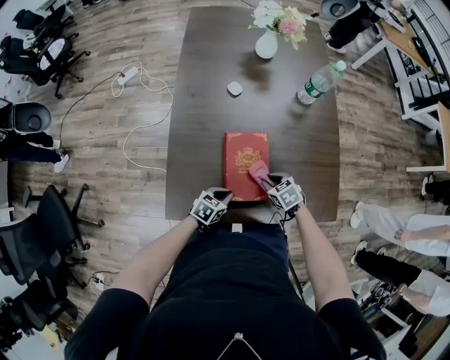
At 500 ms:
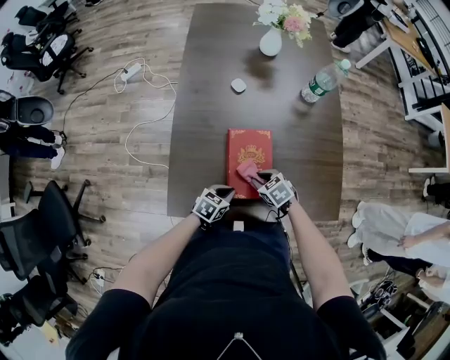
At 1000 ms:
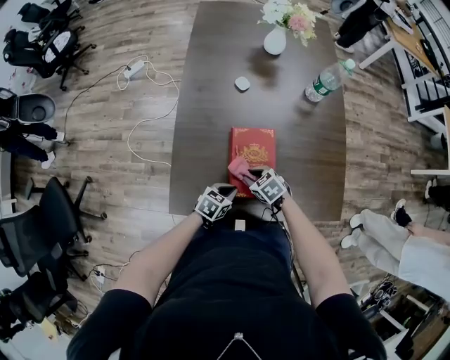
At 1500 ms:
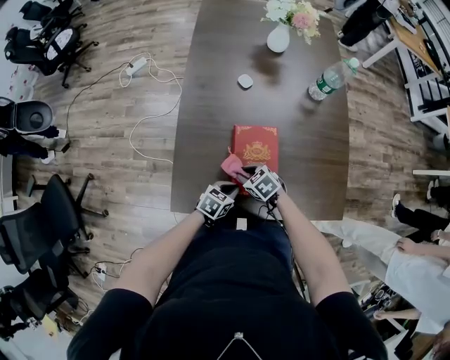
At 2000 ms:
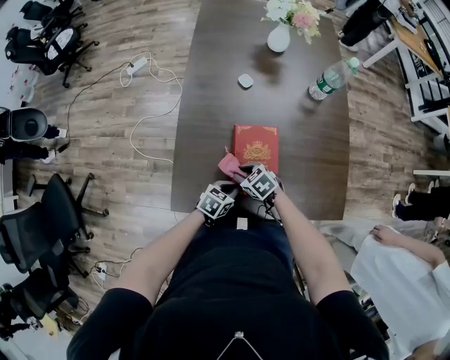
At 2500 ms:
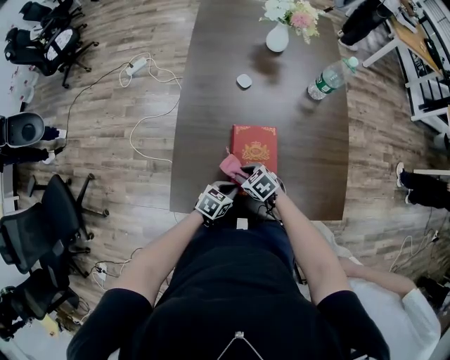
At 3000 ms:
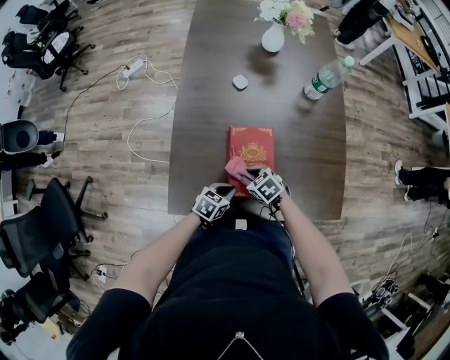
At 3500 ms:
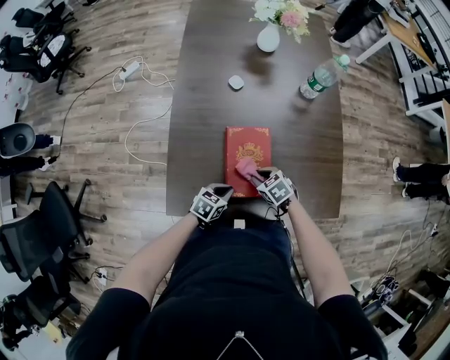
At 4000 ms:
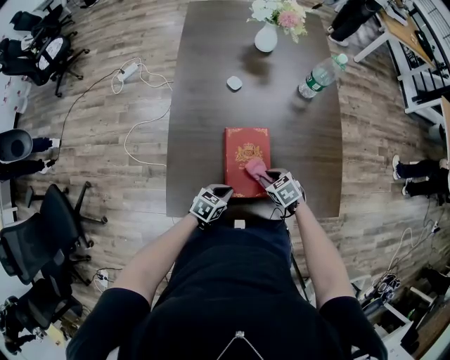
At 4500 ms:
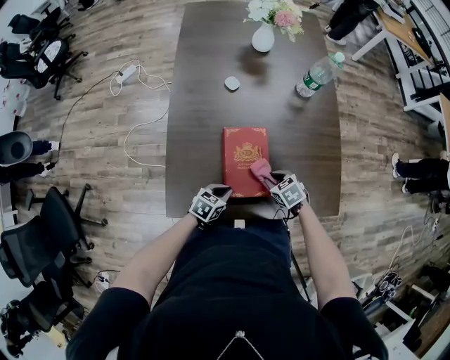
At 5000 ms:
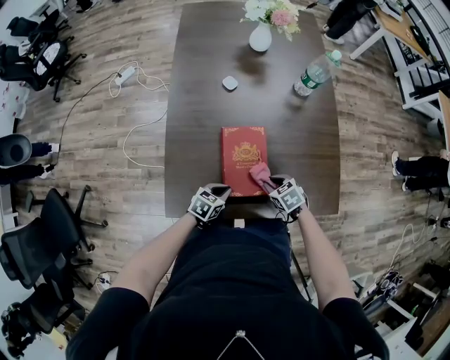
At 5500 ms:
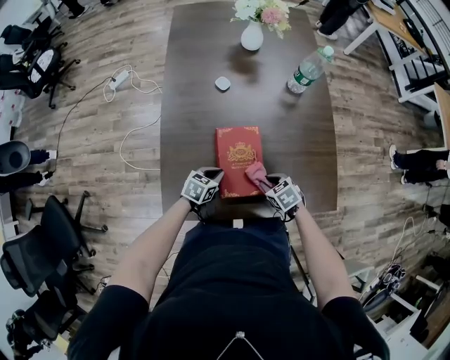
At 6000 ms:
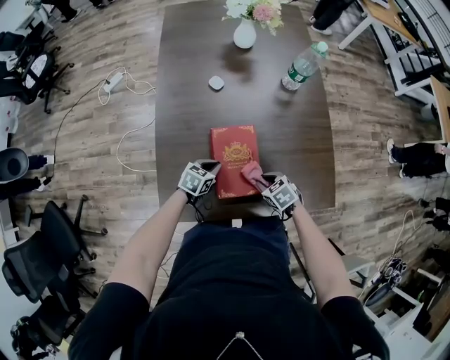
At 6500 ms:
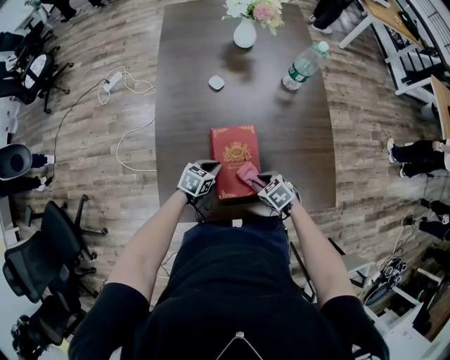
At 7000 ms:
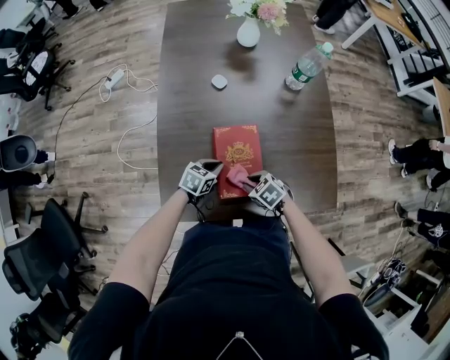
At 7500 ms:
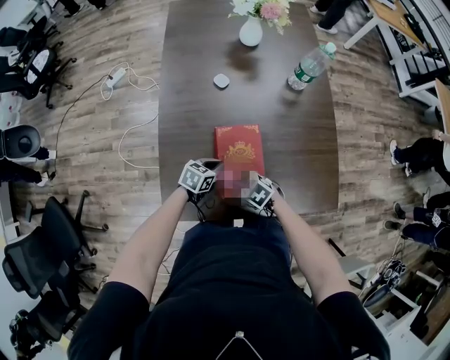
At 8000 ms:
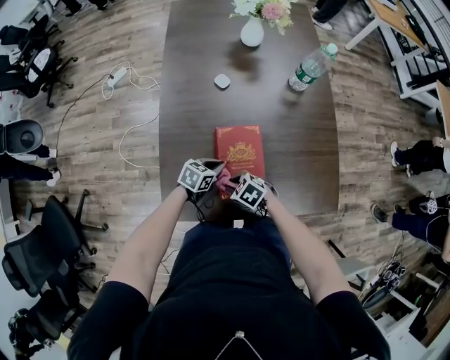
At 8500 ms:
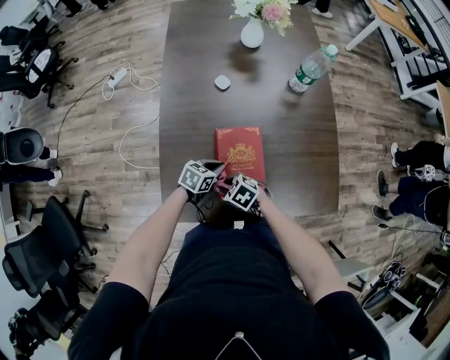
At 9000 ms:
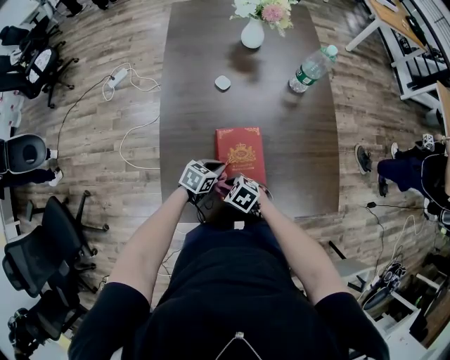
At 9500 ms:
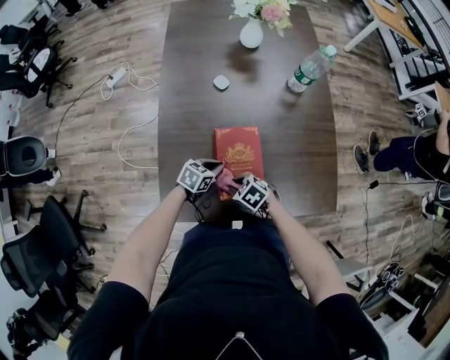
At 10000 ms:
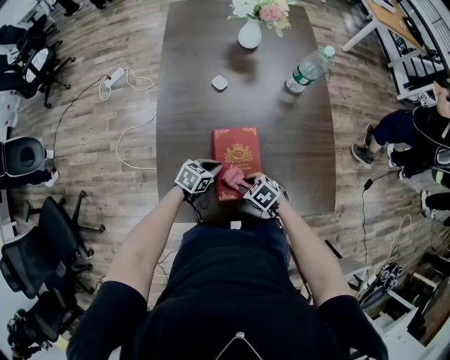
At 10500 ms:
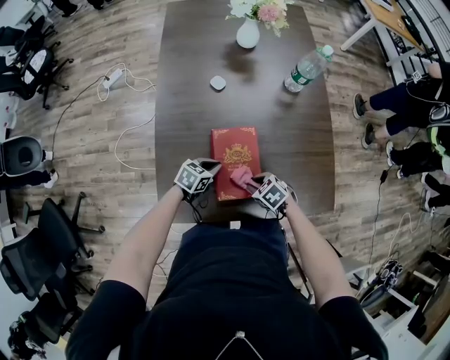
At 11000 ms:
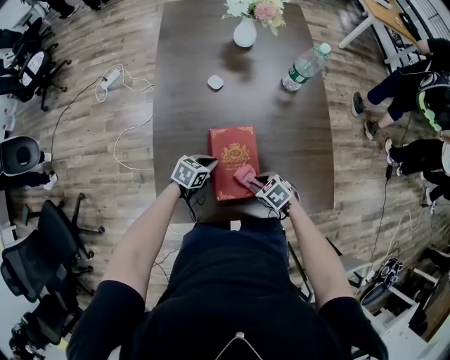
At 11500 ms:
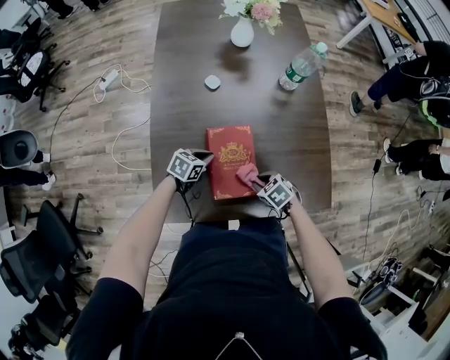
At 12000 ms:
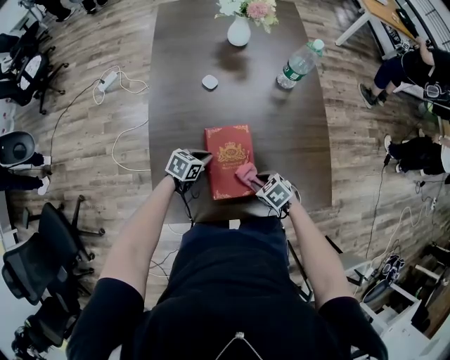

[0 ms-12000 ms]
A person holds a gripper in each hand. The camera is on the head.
0 ms to 2000 ms: The right gripper ends up approximately 15 cm from where it was.
2000 ms to 4000 ms: The right gripper ends up approximately 15 cm from where it was.
4000 ms to 6000 ms: The left gripper heads forward, covering some 10 cm.
6000 ms to 8000 ms: The right gripper changes place by roughly 15 cm.
8000 ms to 10000 ms: The right gripper ends up some 5 cm from where it was.
10000 ms to 12000 ms: The right gripper changes place by some 5 cm.

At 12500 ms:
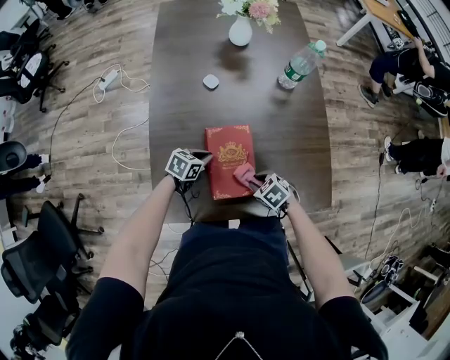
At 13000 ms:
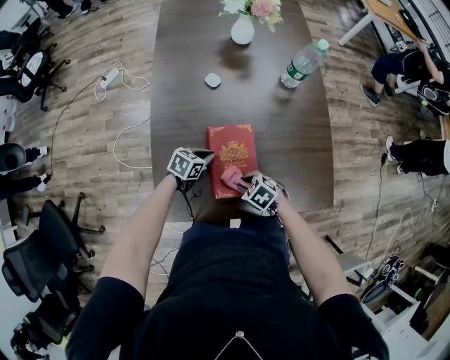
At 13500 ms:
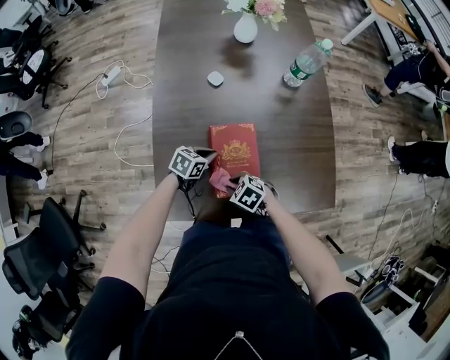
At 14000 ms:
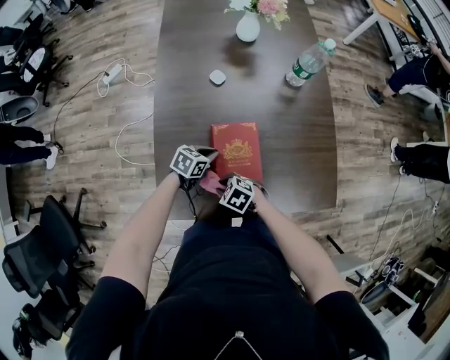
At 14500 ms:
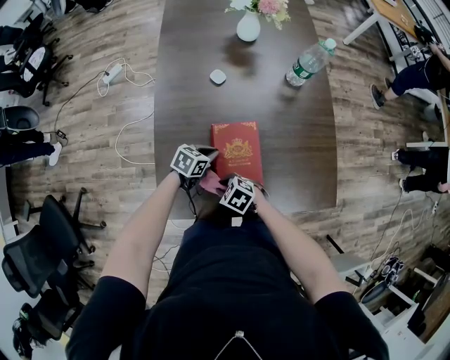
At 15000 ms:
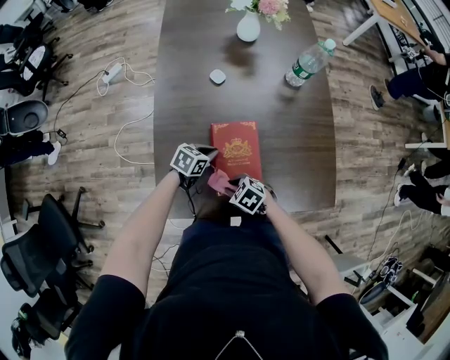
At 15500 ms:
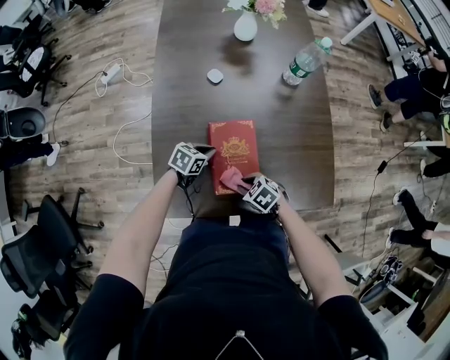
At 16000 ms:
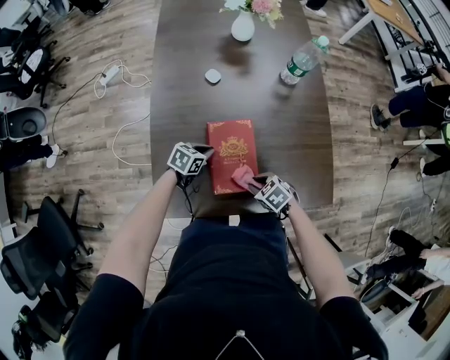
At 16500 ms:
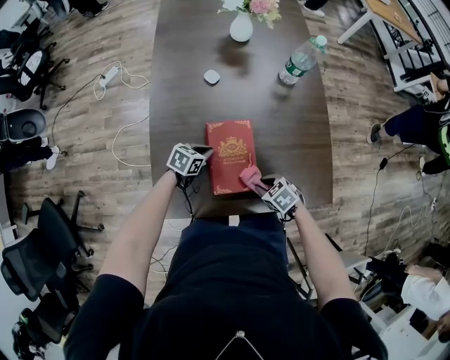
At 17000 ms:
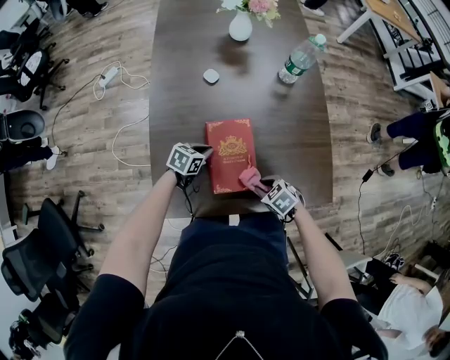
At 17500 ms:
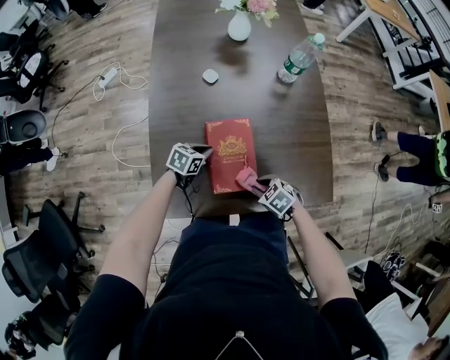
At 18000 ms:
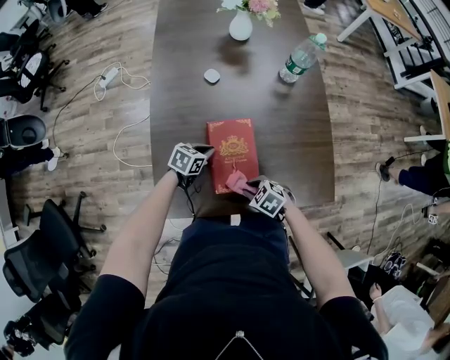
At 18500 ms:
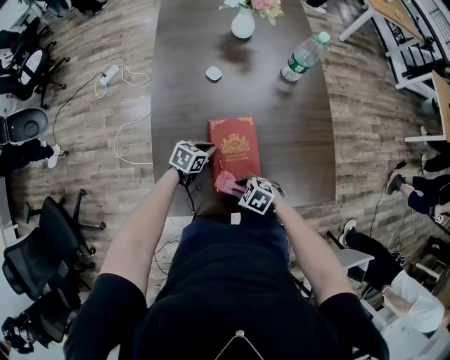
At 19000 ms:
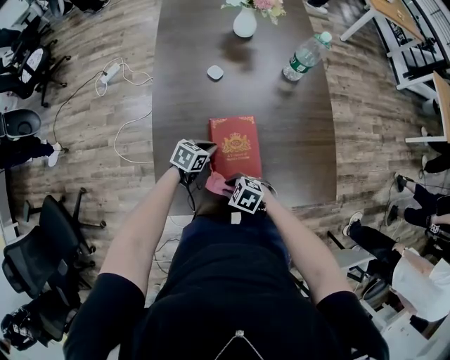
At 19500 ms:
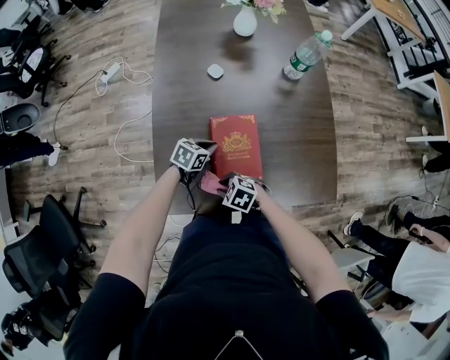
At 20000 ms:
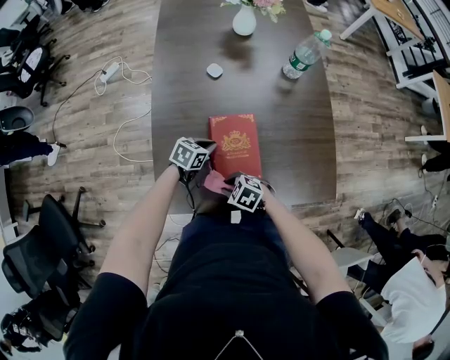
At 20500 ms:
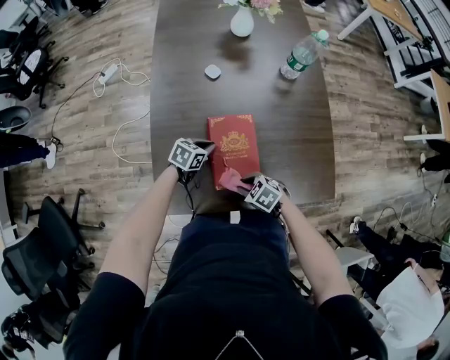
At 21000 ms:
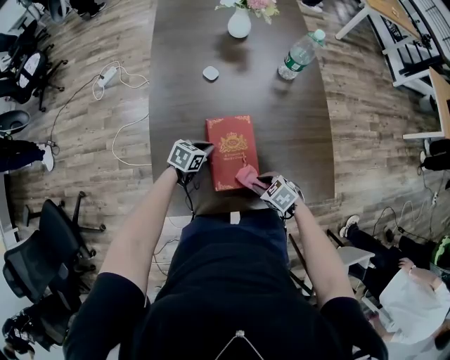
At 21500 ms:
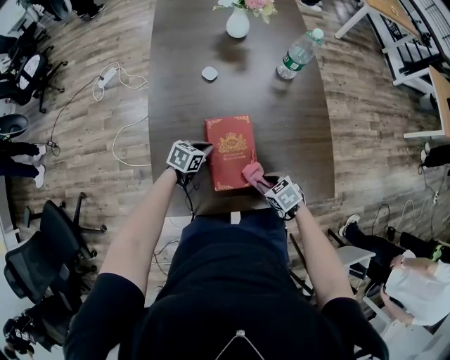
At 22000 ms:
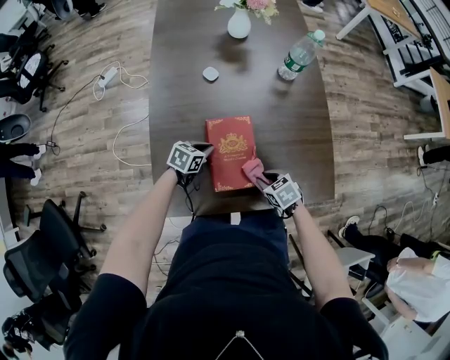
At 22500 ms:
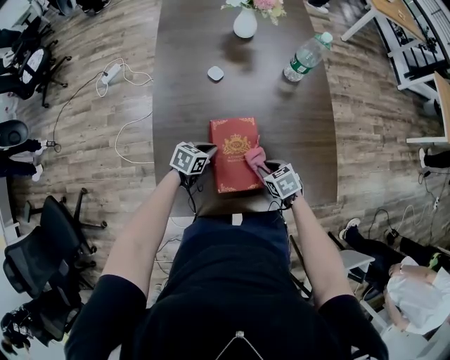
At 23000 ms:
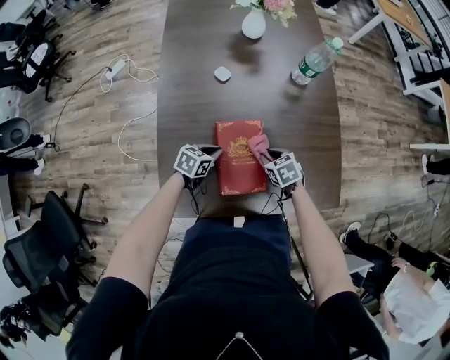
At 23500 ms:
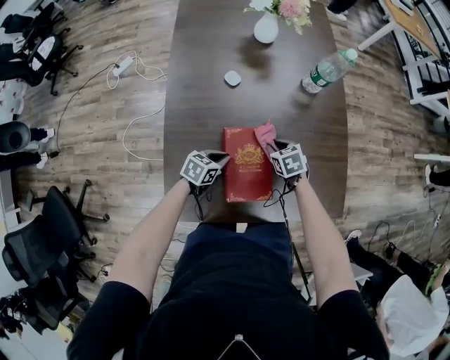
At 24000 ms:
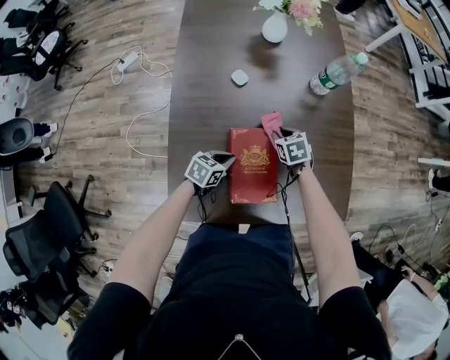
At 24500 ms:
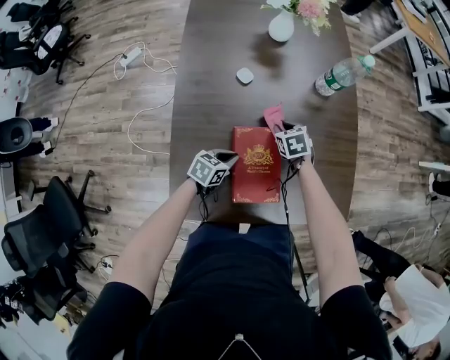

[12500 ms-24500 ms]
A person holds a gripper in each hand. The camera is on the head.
12500 ms to 14500 ms: The right gripper shifts by approximately 15 cm.
14500 ms to 16500 ms: The right gripper shifts by some 15 cm.
16500 ms to 18500 ms: The right gripper moves some 10 cm.
20500 ms to 22500 ms: The right gripper ends up some 10 cm from where it was, and changes its angle by approximately 30 degrees.
22500 ms to 24500 ms: The right gripper goes about 20 cm forward.

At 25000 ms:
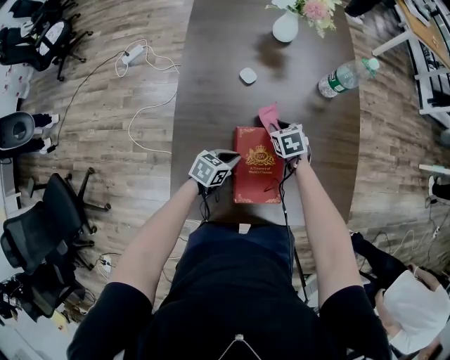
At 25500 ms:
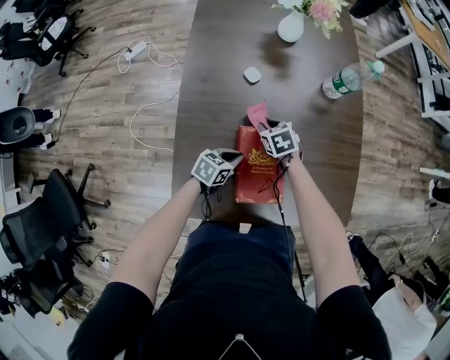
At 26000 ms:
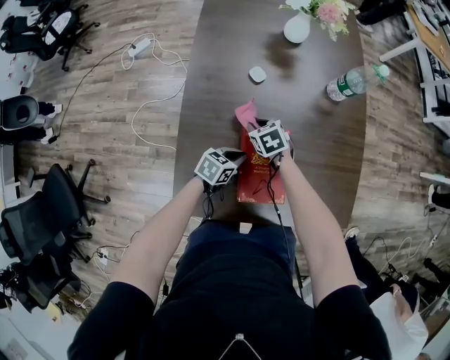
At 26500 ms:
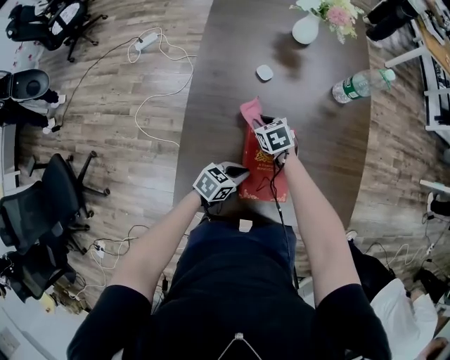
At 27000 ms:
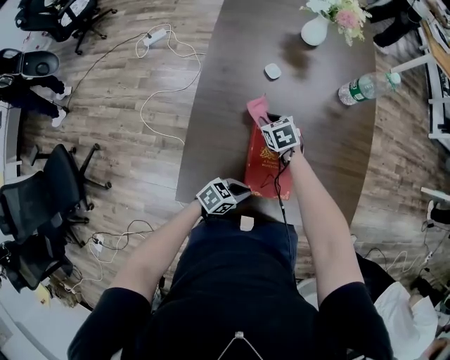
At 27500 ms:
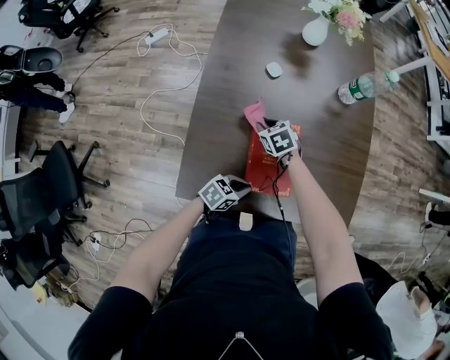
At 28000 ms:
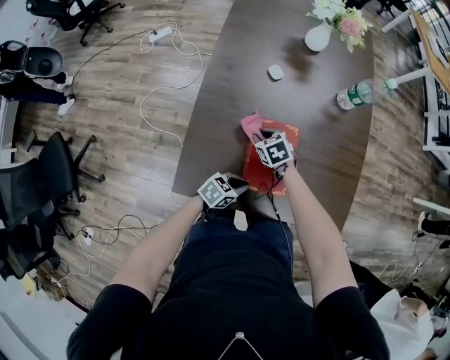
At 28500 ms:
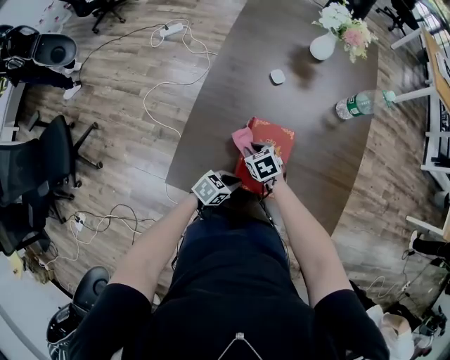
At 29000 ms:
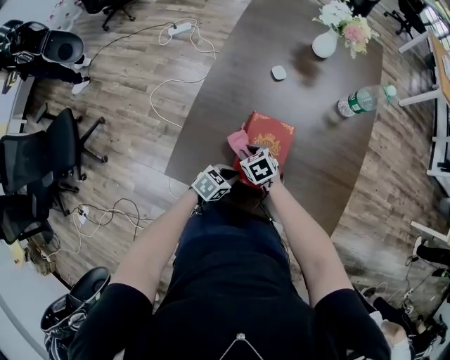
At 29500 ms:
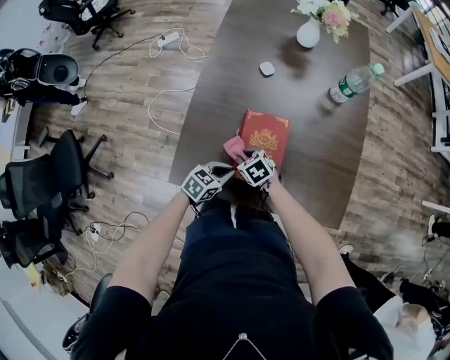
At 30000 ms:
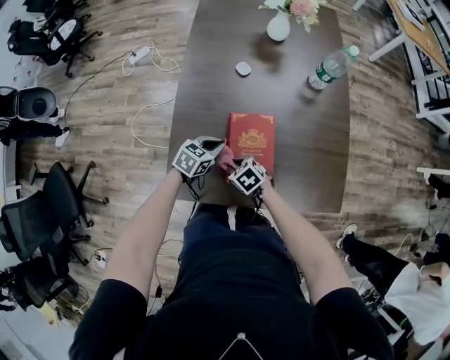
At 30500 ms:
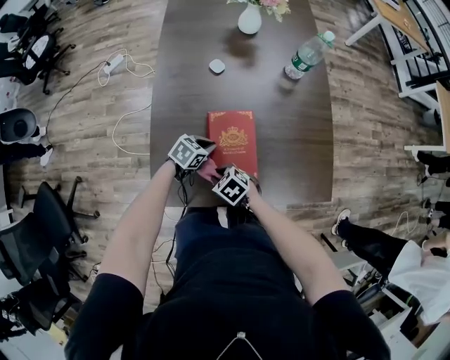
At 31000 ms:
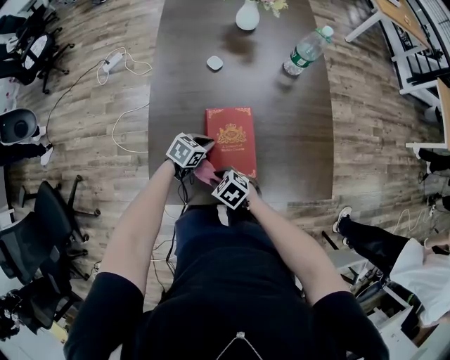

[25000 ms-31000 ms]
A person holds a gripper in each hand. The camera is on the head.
25000 ms to 27000 ms: The right gripper shifts about 10 cm to the left. Meanwhile the left gripper moves backward and to the right, about 15 cm.
27000 ms to 29000 ms: The left gripper swivels roughly 20 degrees. The right gripper changes place by roughly 15 cm.
29000 ms to 31000 ms: The left gripper moves approximately 10 cm; the right gripper moves roughly 10 cm.
